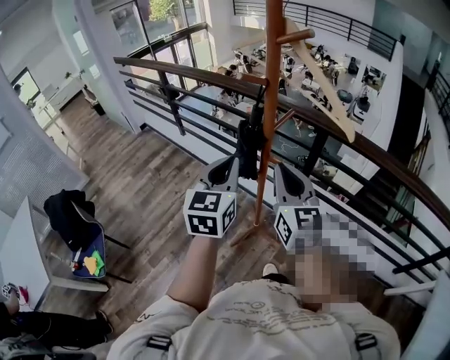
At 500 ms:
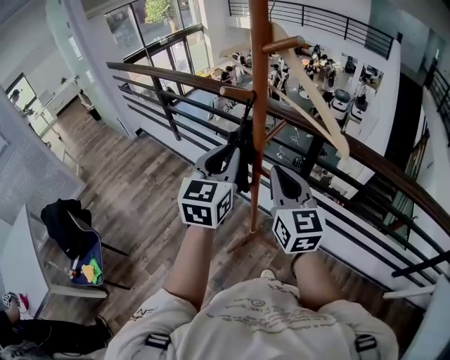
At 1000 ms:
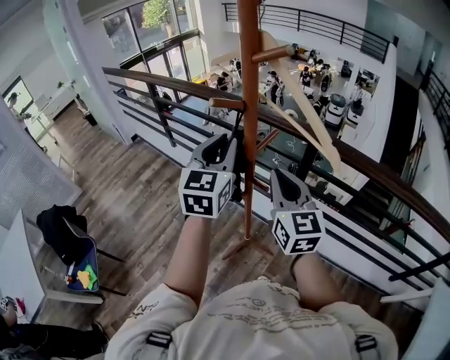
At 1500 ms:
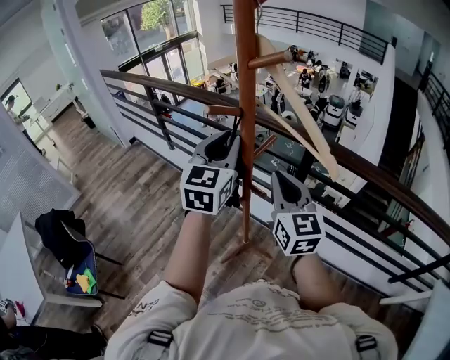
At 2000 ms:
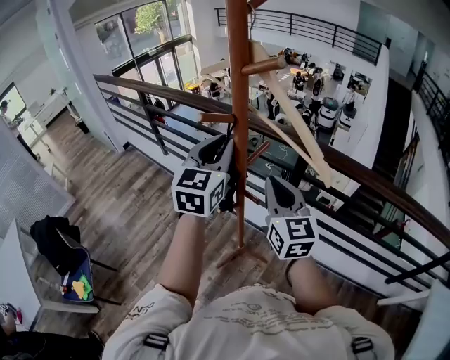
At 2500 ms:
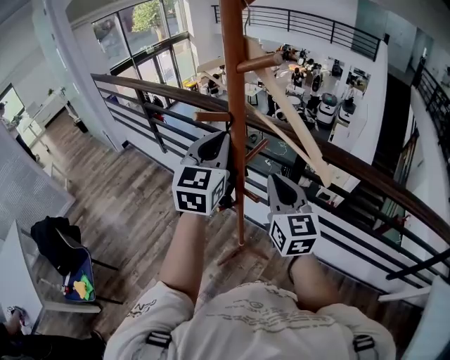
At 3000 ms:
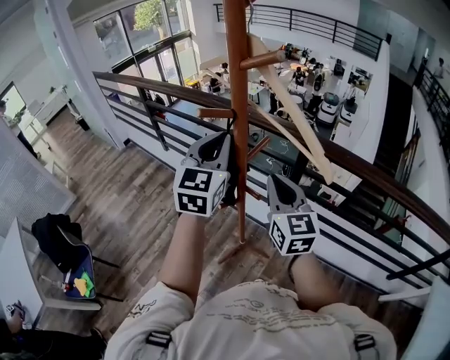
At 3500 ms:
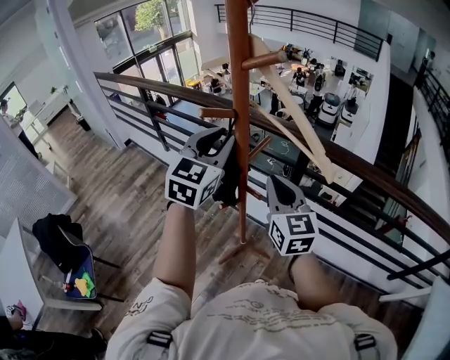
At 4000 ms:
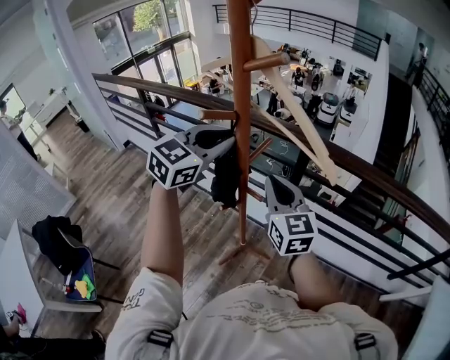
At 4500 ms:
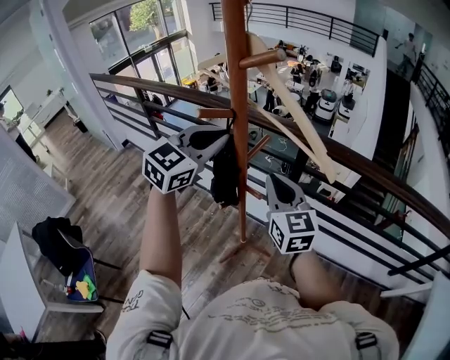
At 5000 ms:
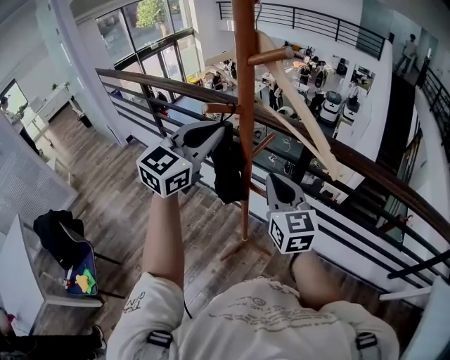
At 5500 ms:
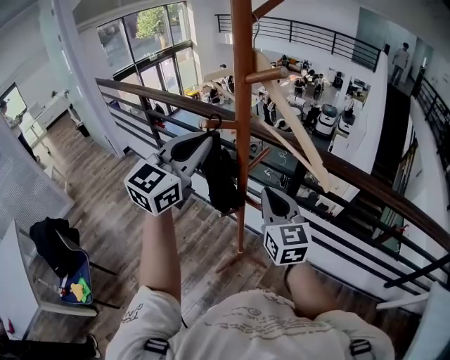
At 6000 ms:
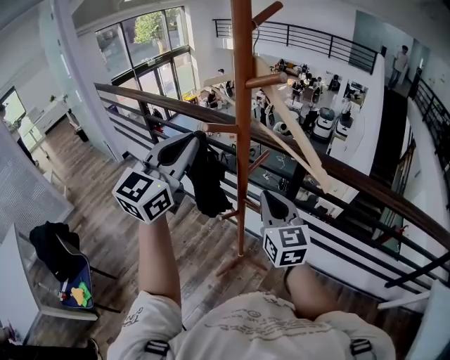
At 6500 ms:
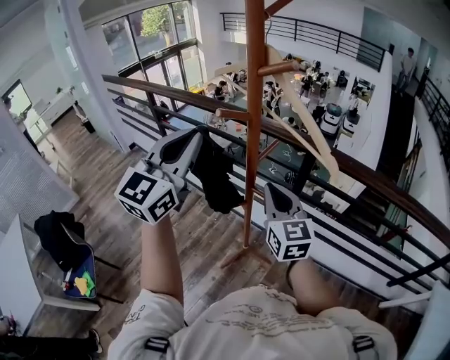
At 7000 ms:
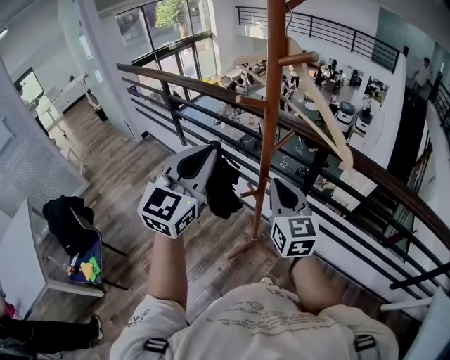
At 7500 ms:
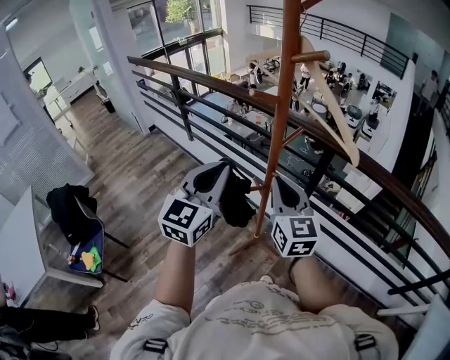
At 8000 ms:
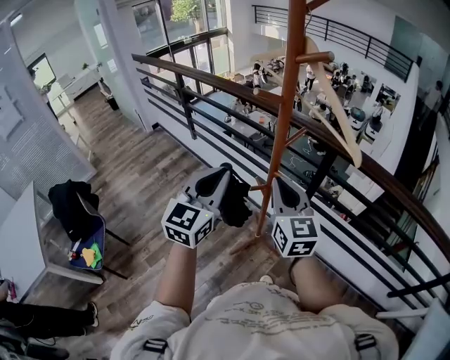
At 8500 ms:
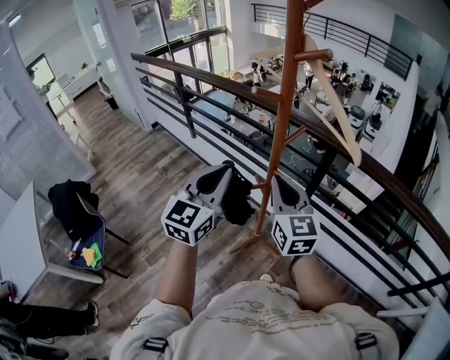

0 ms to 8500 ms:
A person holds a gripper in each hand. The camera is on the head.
0 ms to 2000 ms: The right gripper moves forward and to the right, some 10 cm; the left gripper travels forward, upward and to the right by some 20 cm.
2000 ms to 4000 ms: The left gripper turns by some 30 degrees.
4000 ms to 6500 ms: The left gripper heads backward, upward and to the left, covering roughly 15 cm, and changes its angle by some 30 degrees.
6500 ms to 8500 ms: The right gripper shifts by roughly 5 cm. Meanwhile the left gripper heads downward and backward, covering approximately 15 cm.

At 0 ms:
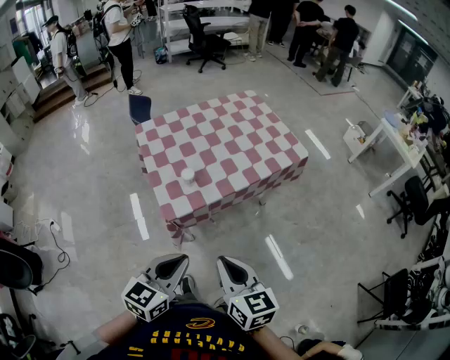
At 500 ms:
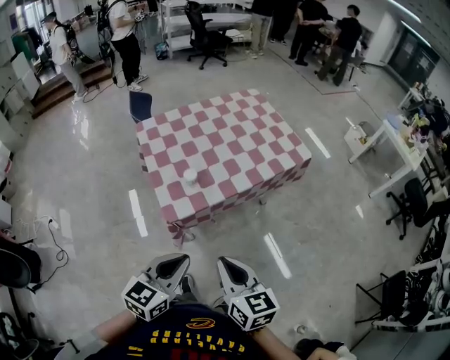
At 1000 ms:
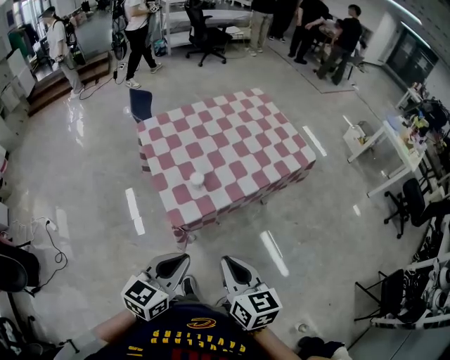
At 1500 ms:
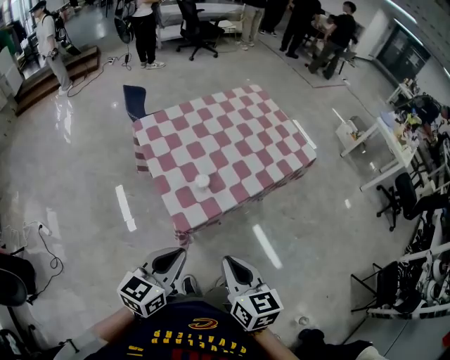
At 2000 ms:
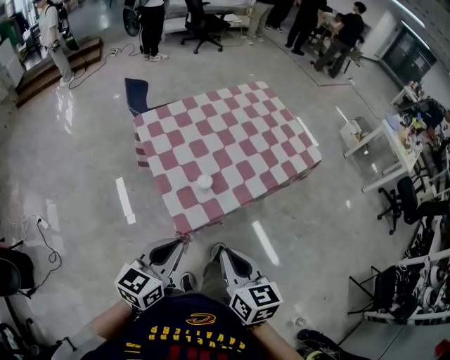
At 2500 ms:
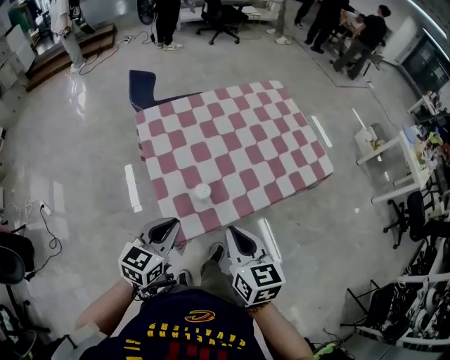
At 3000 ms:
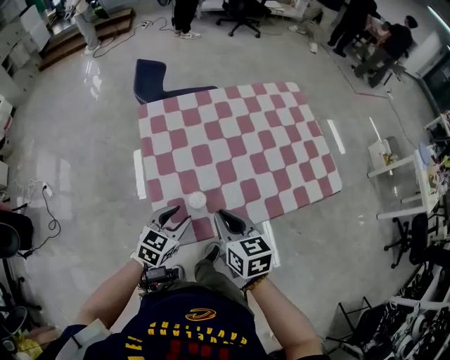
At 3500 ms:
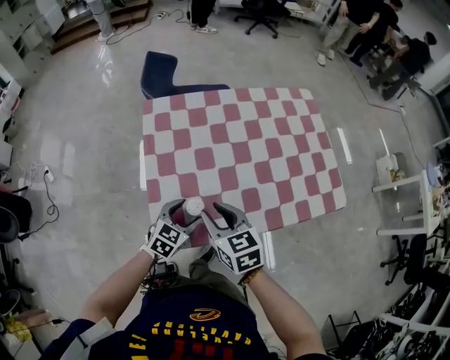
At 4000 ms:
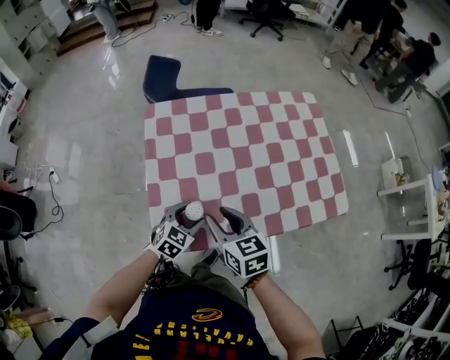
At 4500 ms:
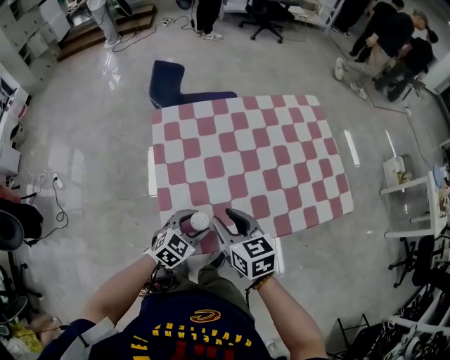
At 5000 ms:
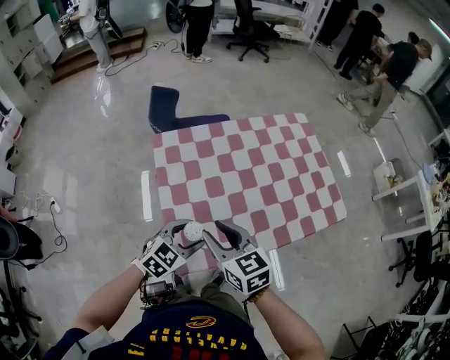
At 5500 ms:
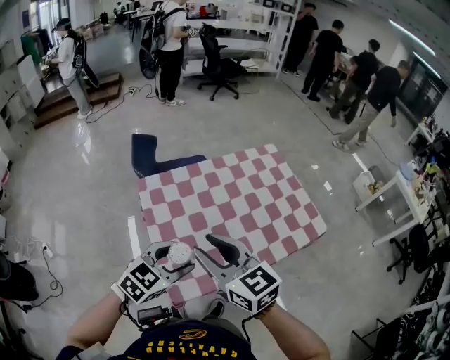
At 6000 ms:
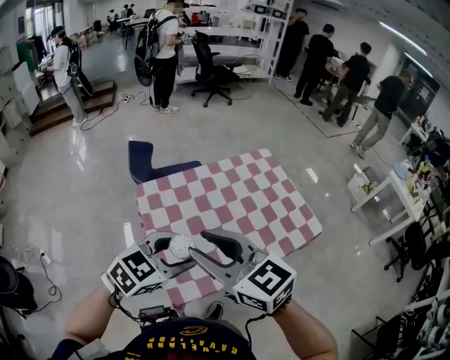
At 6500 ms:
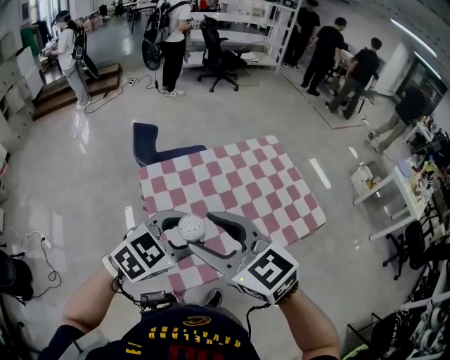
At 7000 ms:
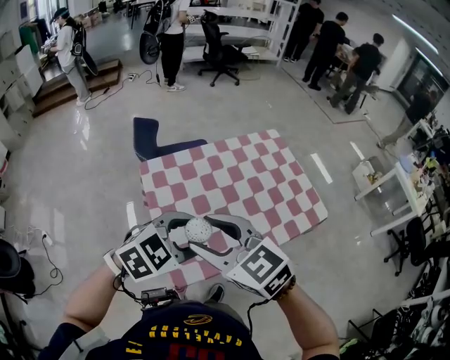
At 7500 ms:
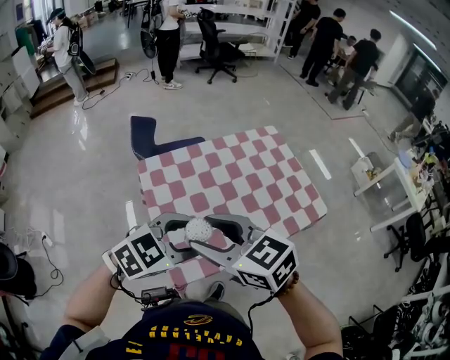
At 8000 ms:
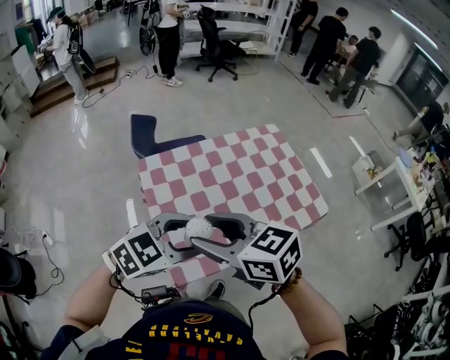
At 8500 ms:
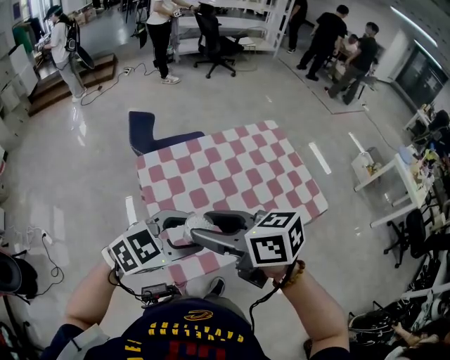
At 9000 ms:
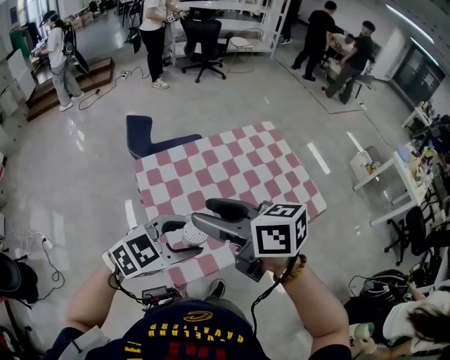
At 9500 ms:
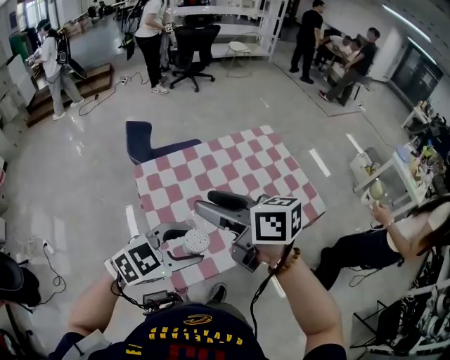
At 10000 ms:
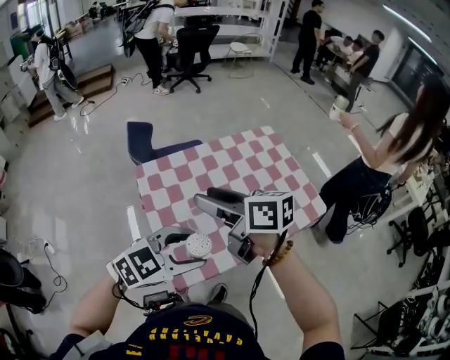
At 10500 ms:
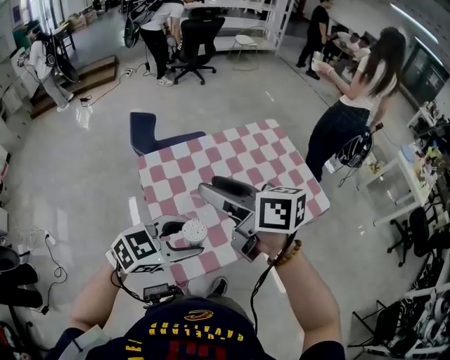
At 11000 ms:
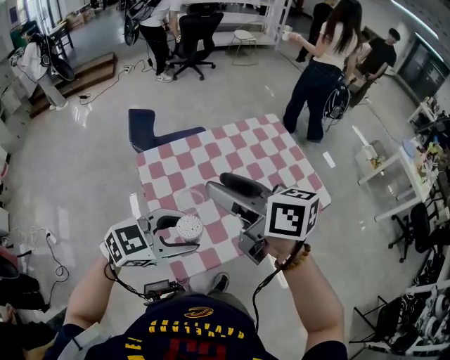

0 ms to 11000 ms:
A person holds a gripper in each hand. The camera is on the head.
0 ms to 2000 ms: Both grippers move to the left and forward, about 15 cm.
2000 ms to 3500 ms: The right gripper is displaced forward by approximately 25 cm, changes its angle by roughly 30 degrees, and opens up, while the left gripper travels forward and downward by some 30 cm, rotates some 30 degrees, and opens up.
3500 ms to 5500 ms: Both grippers move upward, about 25 cm. The right gripper rotates approximately 20 degrees; the left gripper rotates about 20 degrees.
5500 ms to 7500 ms: The left gripper heads upward, covering approximately 5 cm. The right gripper opens its fingers.
7500 ms to 9000 ms: The right gripper turns by some 30 degrees.
9000 ms to 11000 ms: The right gripper shifts by some 5 cm.

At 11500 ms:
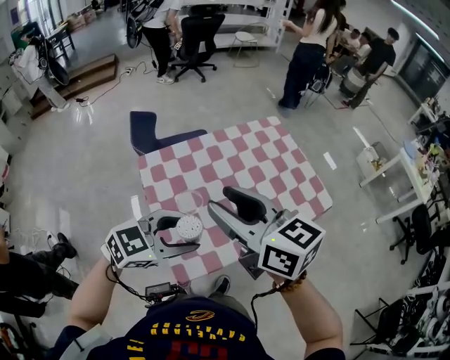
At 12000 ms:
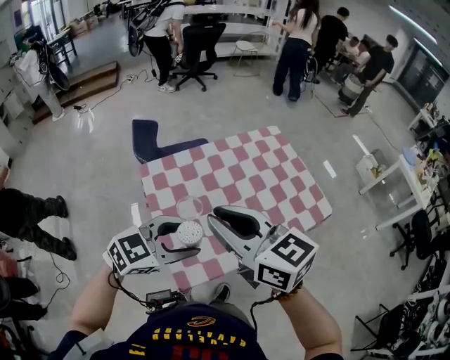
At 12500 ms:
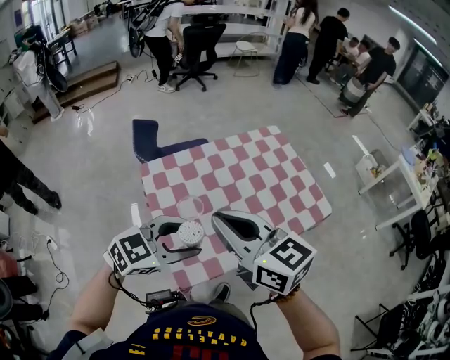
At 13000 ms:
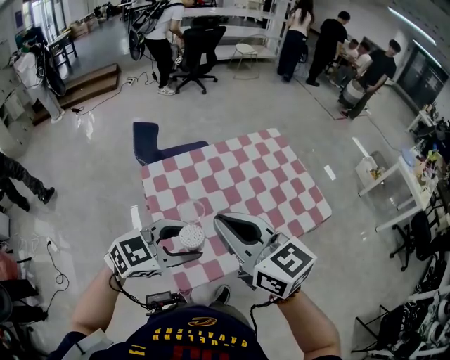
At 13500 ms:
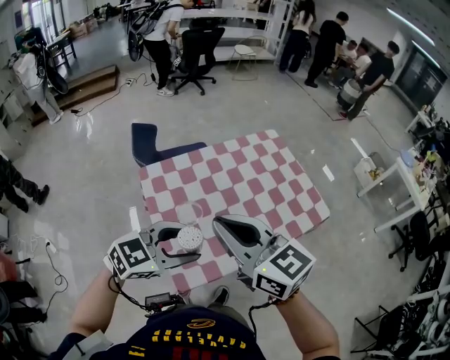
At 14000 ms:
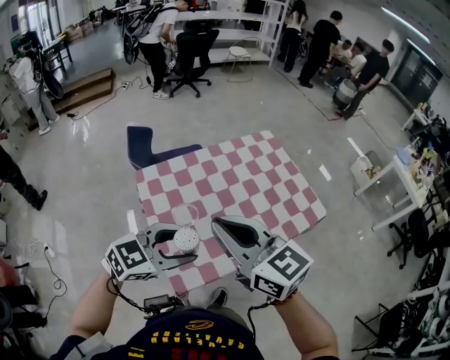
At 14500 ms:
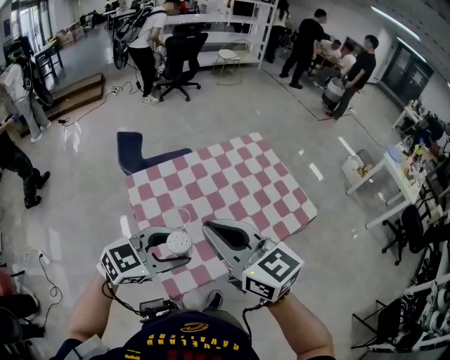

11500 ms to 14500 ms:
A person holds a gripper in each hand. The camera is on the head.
11500 ms to 13000 ms: The right gripper closes its fingers.
13000 ms to 14500 ms: The grippers stay close to where they were, moving slightly.

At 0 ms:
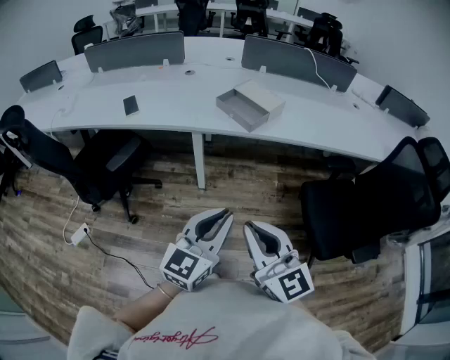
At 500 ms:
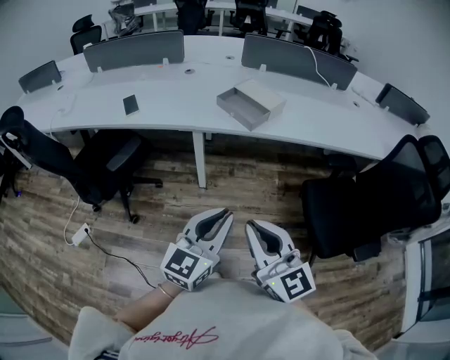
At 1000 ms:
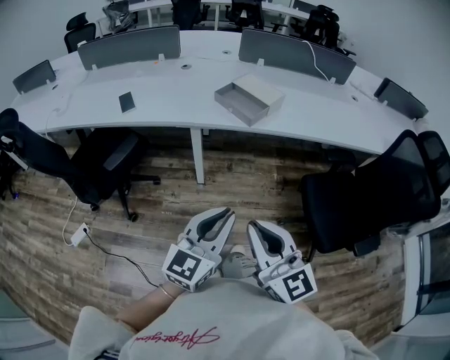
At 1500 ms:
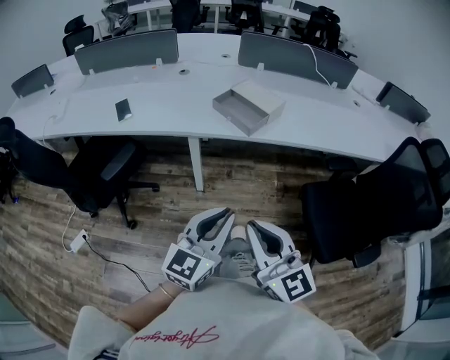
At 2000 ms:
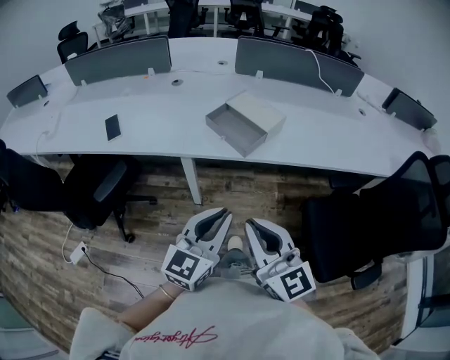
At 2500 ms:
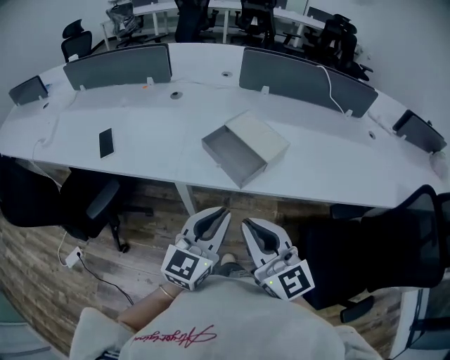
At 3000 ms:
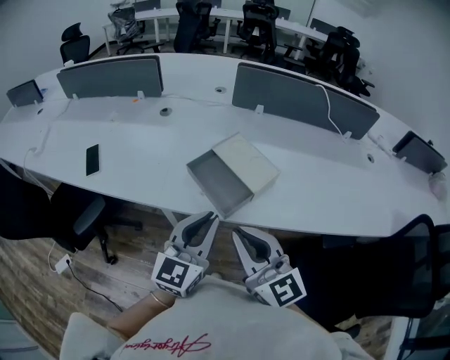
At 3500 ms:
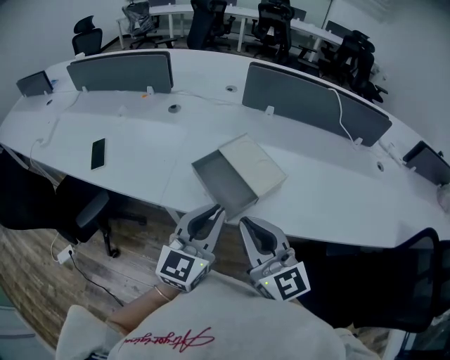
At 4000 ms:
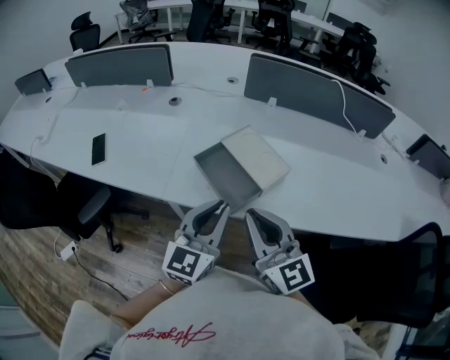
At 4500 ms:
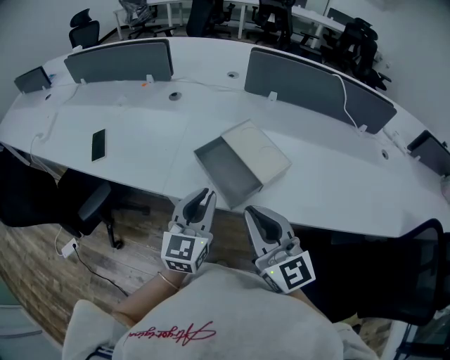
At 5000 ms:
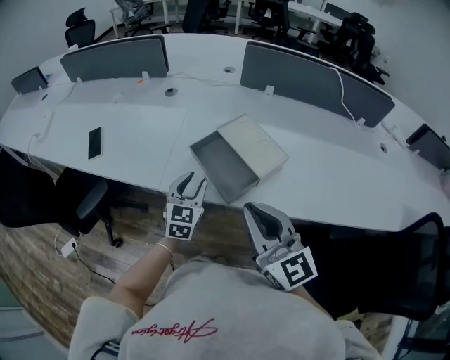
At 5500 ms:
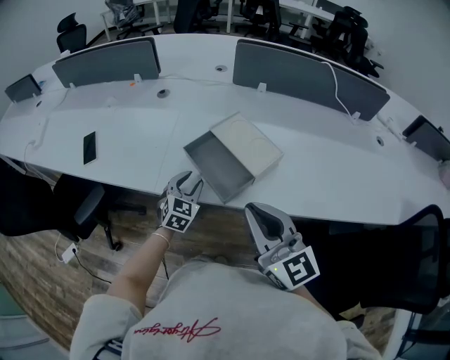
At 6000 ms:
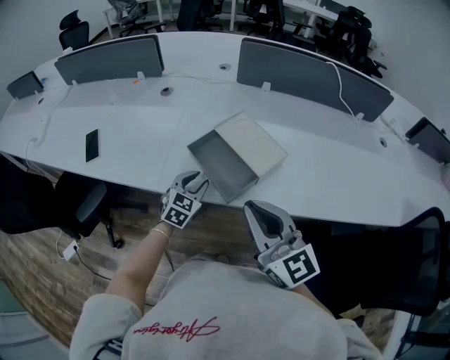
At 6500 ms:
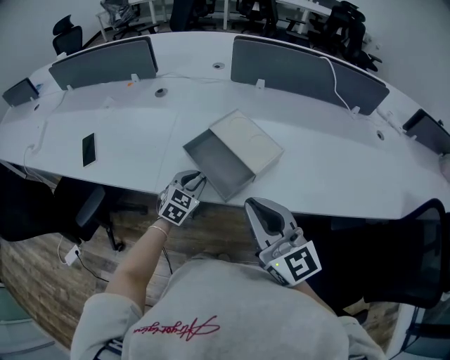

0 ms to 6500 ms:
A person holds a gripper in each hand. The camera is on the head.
0 ms to 2000 ms: Both grippers move forward, approximately 15 cm.
2000 ms to 4500 ms: The grippers both shift forward by approximately 25 cm. The left gripper turns by about 20 degrees.
4500 ms to 6500 ms: The left gripper shifts approximately 20 cm downward and forward, and swivels approximately 40 degrees.
